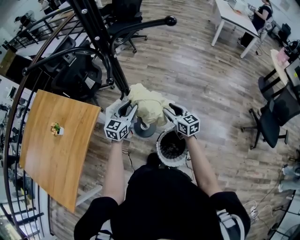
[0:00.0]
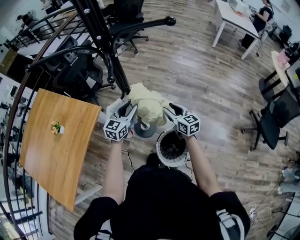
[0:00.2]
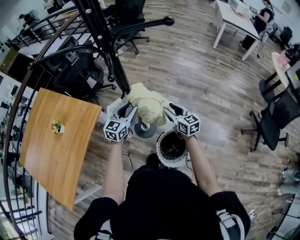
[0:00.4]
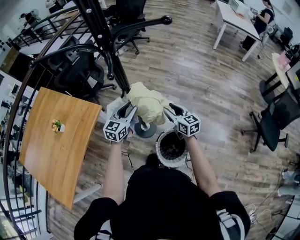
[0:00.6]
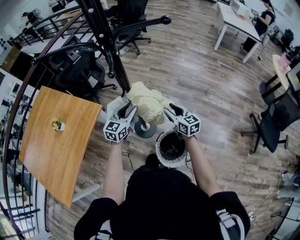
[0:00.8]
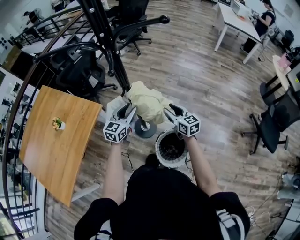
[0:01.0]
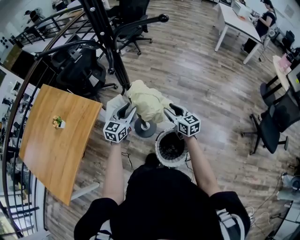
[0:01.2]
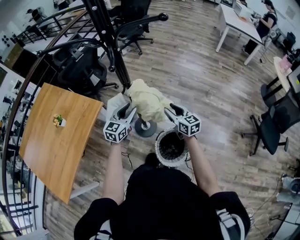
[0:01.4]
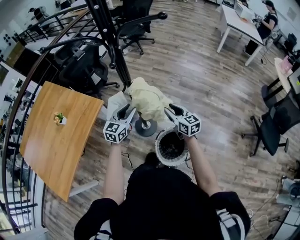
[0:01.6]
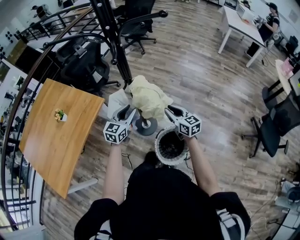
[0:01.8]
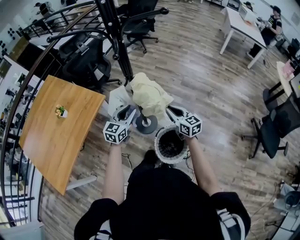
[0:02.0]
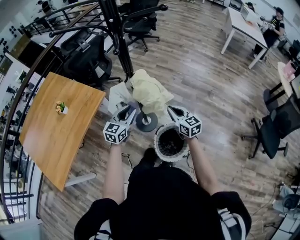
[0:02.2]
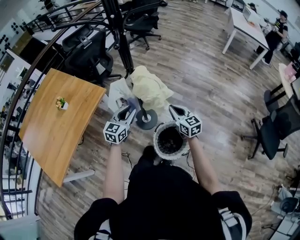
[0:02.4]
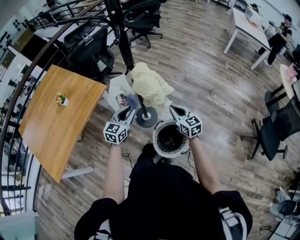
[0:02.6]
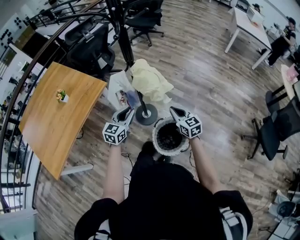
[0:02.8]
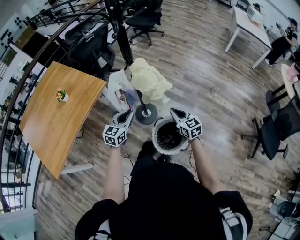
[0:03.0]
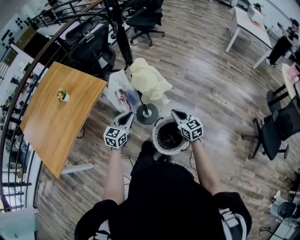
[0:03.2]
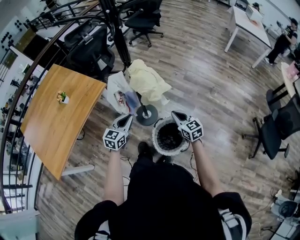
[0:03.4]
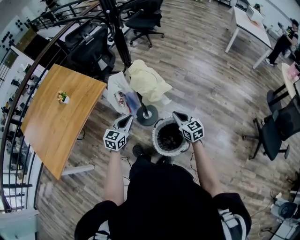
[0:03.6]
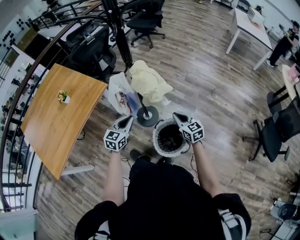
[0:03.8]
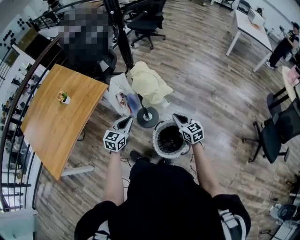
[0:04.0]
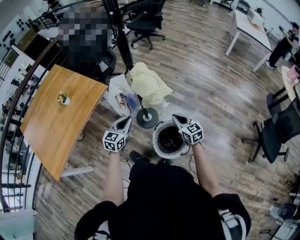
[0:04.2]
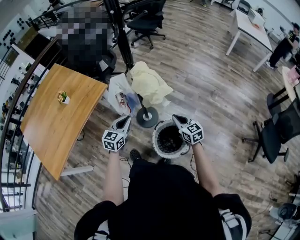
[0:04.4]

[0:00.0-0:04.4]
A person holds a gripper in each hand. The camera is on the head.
0:00.0 to 0:01.4: There are only small adjustments of the grippers.
0:01.4 to 0:03.0: The grippers both shift backward by about 15 cm. The right gripper closes.
0:03.0 to 0:04.4: The grippers move only a little.

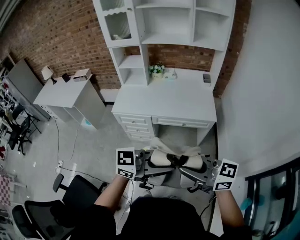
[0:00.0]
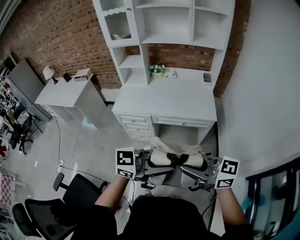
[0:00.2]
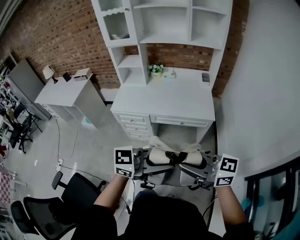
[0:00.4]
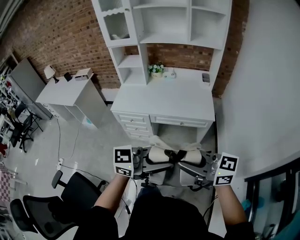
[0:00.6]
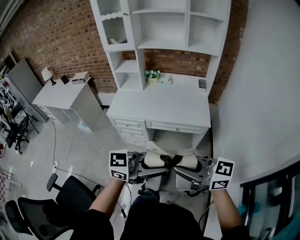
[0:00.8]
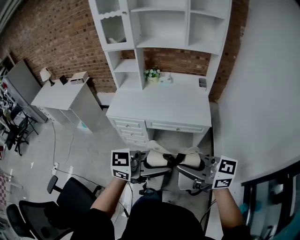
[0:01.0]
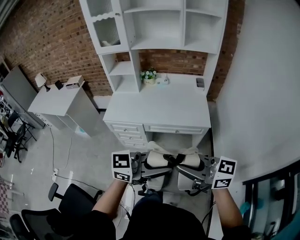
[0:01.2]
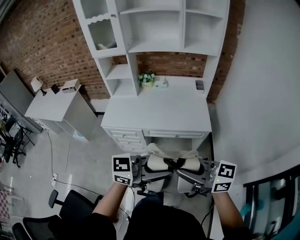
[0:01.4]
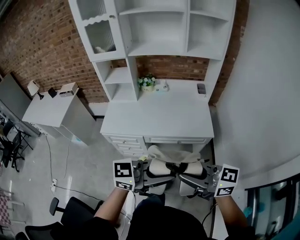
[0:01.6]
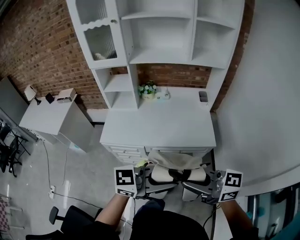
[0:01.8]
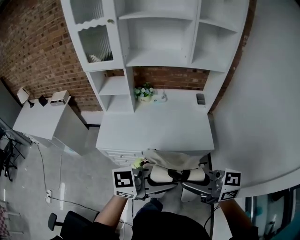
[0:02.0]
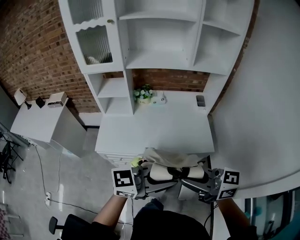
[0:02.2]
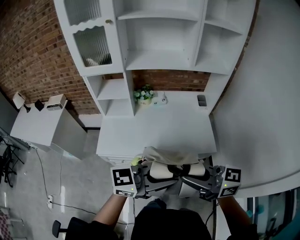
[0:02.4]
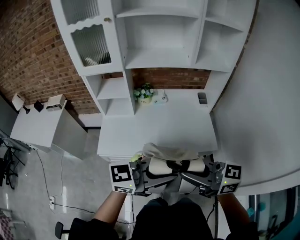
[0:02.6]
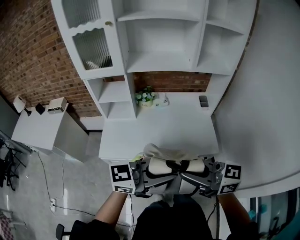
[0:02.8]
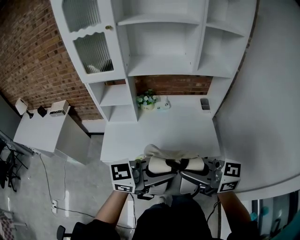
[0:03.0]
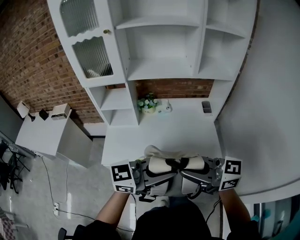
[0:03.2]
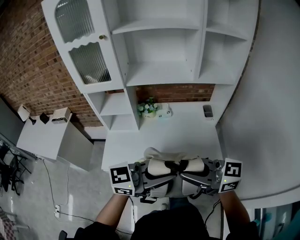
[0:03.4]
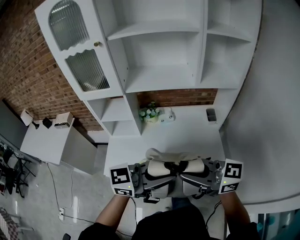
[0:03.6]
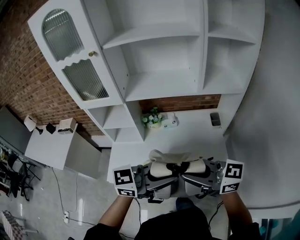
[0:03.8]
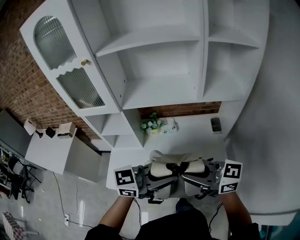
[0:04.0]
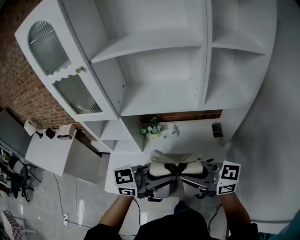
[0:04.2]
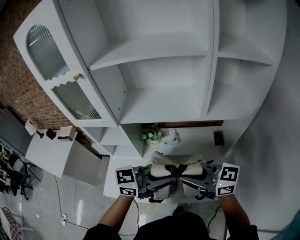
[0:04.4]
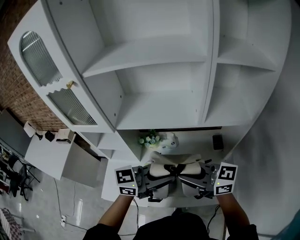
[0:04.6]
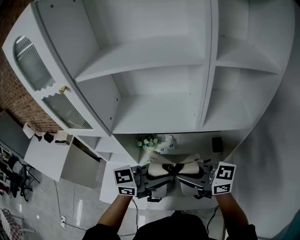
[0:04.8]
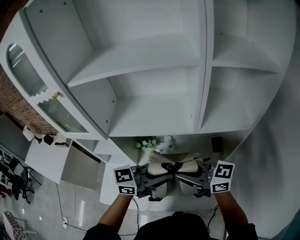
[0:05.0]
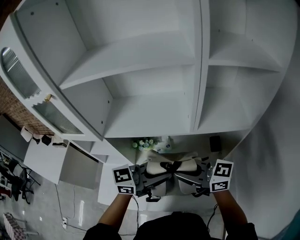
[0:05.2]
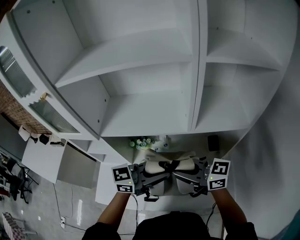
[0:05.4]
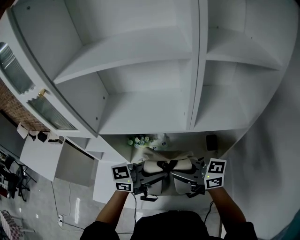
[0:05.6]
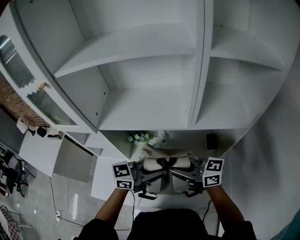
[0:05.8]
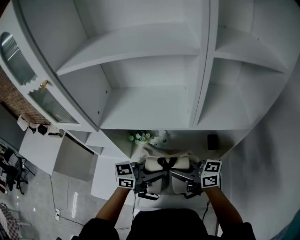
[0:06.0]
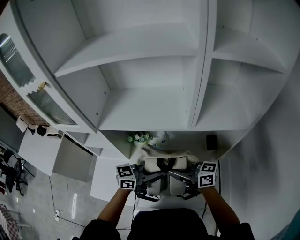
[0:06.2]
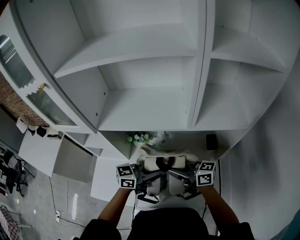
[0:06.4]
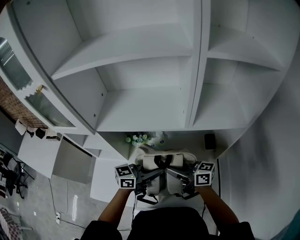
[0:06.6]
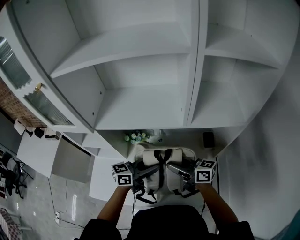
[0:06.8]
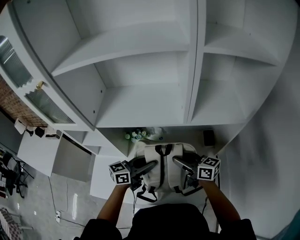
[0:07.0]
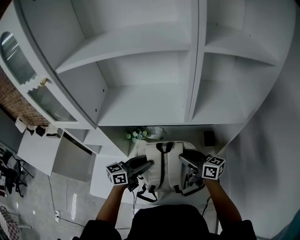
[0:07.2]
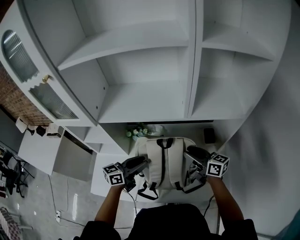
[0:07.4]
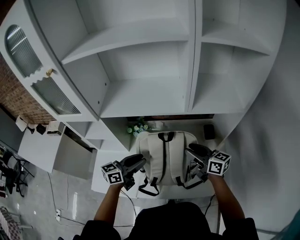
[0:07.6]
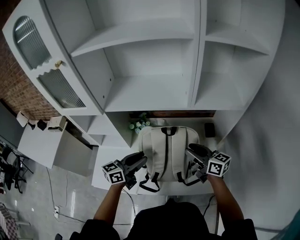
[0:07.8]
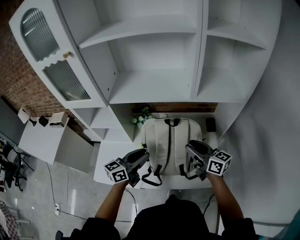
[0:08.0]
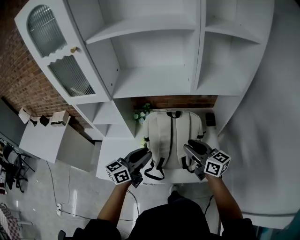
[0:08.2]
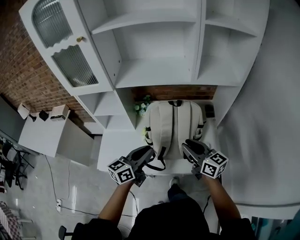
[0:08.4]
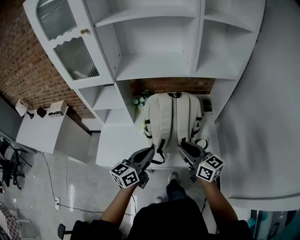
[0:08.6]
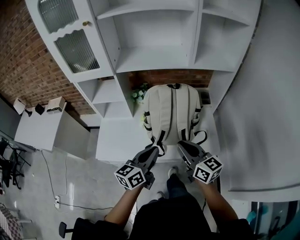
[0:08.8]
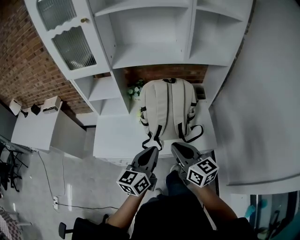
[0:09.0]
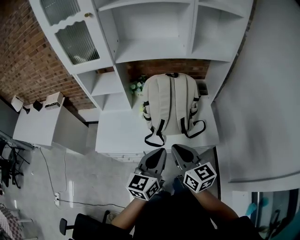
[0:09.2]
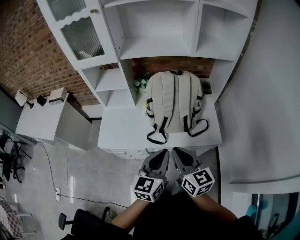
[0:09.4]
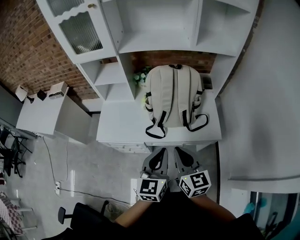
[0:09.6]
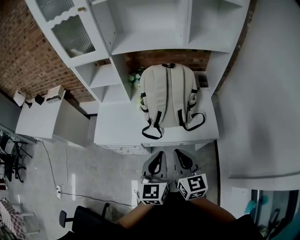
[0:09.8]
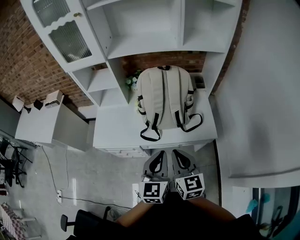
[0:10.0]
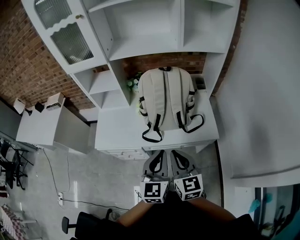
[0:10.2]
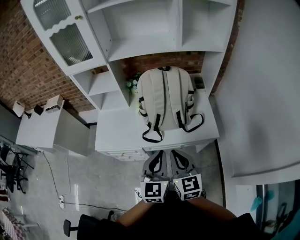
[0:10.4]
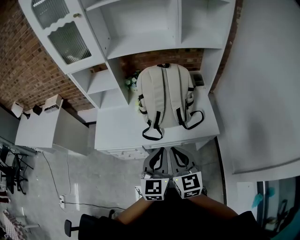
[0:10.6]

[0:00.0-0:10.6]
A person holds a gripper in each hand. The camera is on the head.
0:00.0 to 0:01.6: The right gripper ends up approximately 15 cm from where it was, while the left gripper moves about 15 cm.
0:01.6 to 0:03.0: The right gripper shifts by about 20 cm. The left gripper ends up about 20 cm from where it was.
0:03.0 to 0:04.6: The left gripper shifts by approximately 35 cm, while the right gripper ends up roughly 30 cm from where it was.
0:04.6 to 0:06.0: Both grippers move downward, roughly 10 cm.
0:06.0 to 0:07.6: The left gripper ends up roughly 15 cm from where it was, swivels approximately 20 degrees, and opens its fingers. Meanwhile the right gripper shifts by approximately 10 cm, swivels about 30 degrees, and opens its fingers.
0:07.6 to 0:09.0: The right gripper shifts about 35 cm backward and to the left, and closes. Meanwhile the left gripper heads backward, covering approximately 30 cm, and closes its fingers.
0:09.0 to 0:10.6: Both grippers move backward, about 10 cm. The left gripper swivels about 30 degrees. The right gripper rotates roughly 20 degrees.

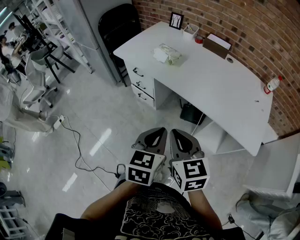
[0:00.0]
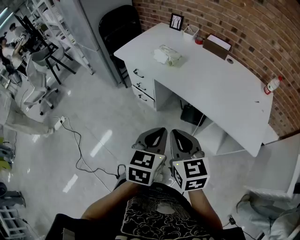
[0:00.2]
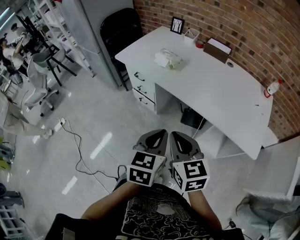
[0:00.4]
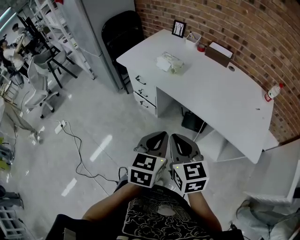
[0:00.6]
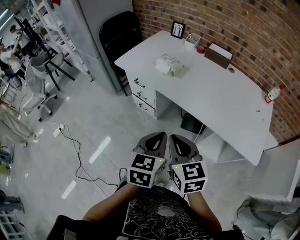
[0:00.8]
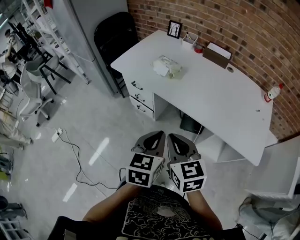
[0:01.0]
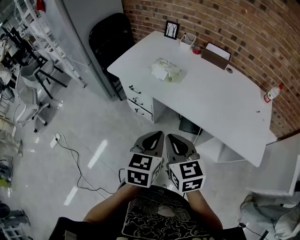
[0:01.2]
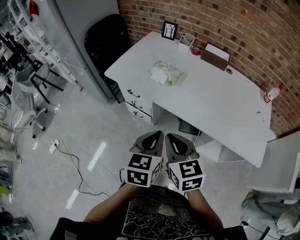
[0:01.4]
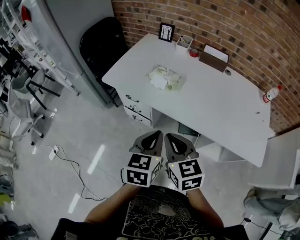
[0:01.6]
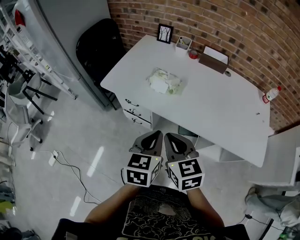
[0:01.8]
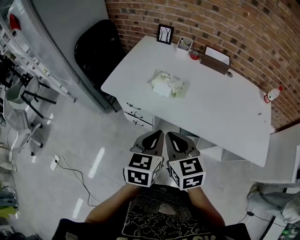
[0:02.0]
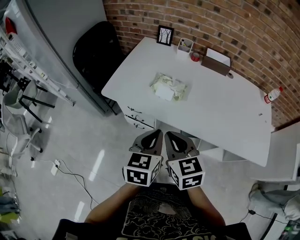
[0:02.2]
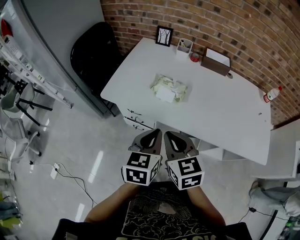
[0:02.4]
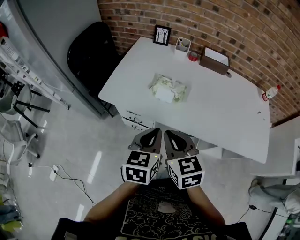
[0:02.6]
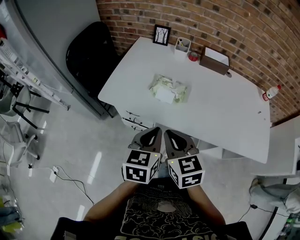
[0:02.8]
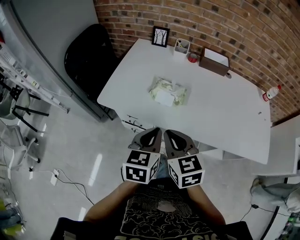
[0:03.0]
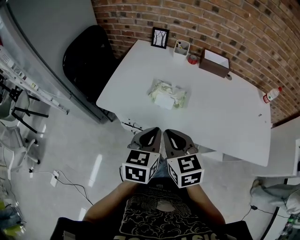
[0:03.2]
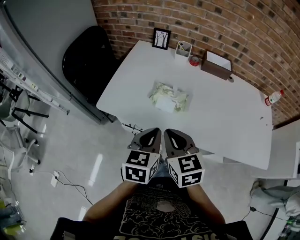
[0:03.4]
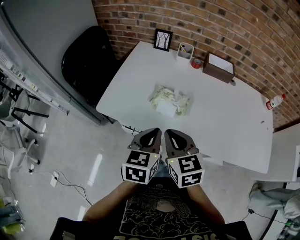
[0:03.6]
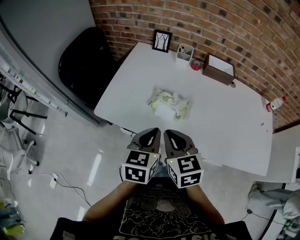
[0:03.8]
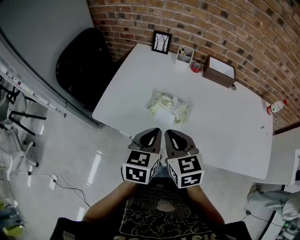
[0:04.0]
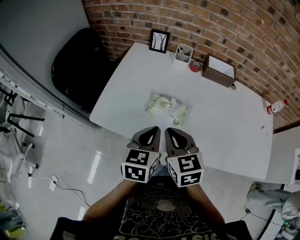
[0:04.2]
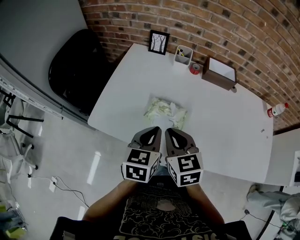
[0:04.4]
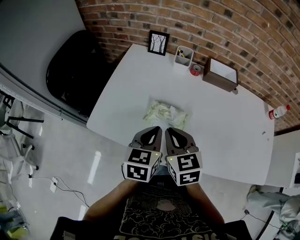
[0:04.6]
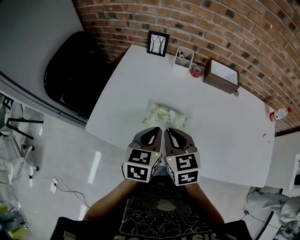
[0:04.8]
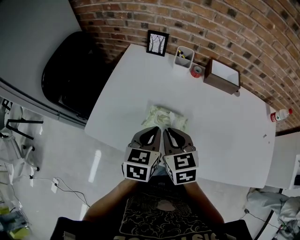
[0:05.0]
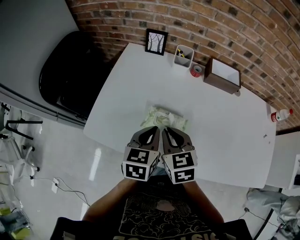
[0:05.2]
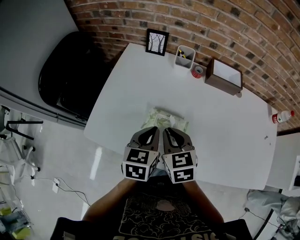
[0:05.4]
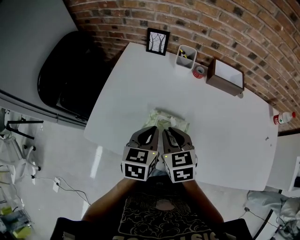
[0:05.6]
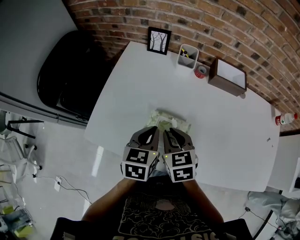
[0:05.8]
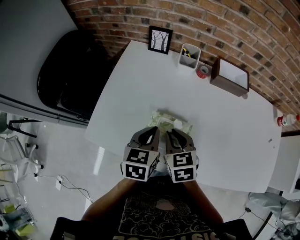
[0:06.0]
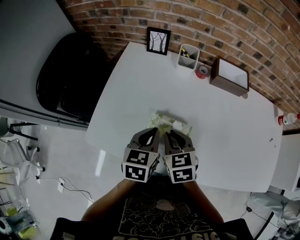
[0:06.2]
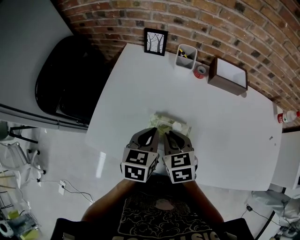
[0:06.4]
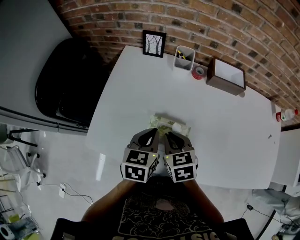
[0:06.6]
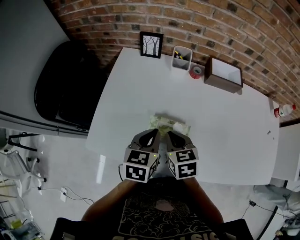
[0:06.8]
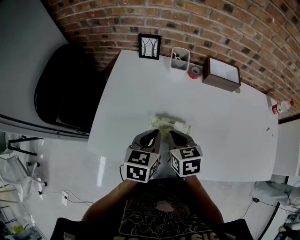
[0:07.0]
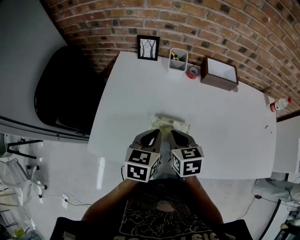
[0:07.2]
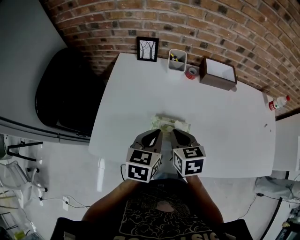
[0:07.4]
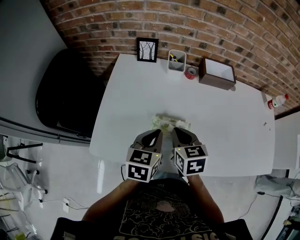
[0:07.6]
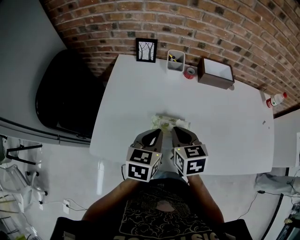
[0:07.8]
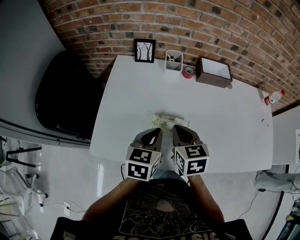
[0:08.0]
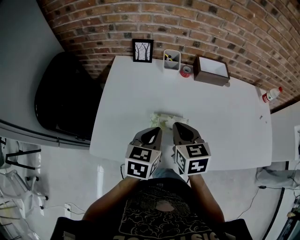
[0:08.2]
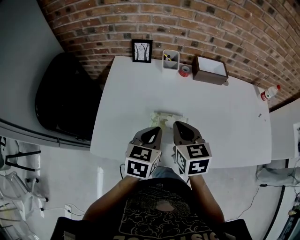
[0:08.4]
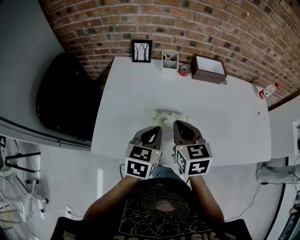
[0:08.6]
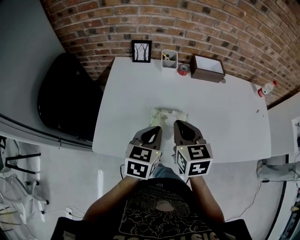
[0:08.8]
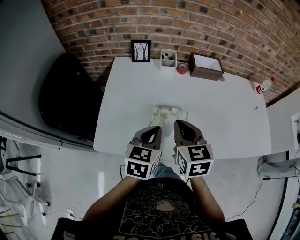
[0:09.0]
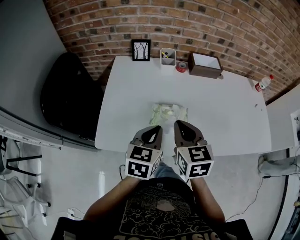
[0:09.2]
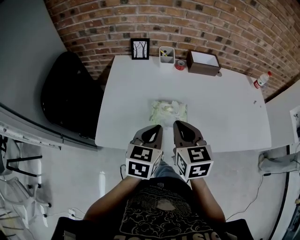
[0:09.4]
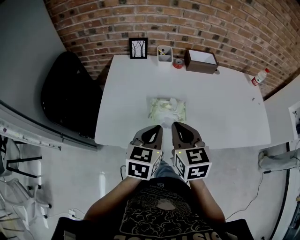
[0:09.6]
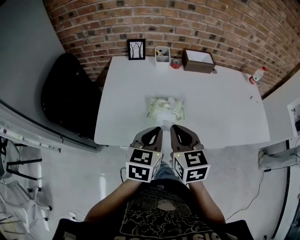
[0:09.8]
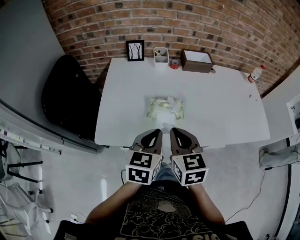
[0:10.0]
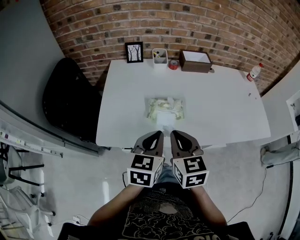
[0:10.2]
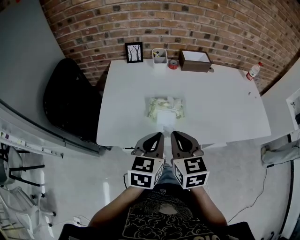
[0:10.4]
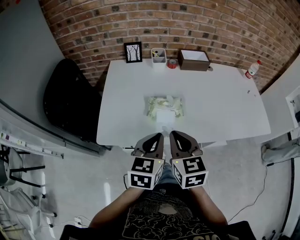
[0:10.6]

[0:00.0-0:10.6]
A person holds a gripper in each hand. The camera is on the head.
0:00.0 to 0:01.6: Both grippers travel together forward and to the left, some 20 cm.
0:01.6 to 0:03.0: The grippers both shift forward and to the left by about 15 cm.
0:03.0 to 0:04.6: The two grippers go roughly 15 cm forward.
0:04.6 to 0:06.0: The left gripper goes about 5 cm forward. The right gripper shifts about 10 cm downward and forward.
0:06.0 to 0:07.6: The grippers make only small movements.
0:07.6 to 0:09.0: The right gripper is displaced upward and backward by some 10 cm. The left gripper heads backward, covering approximately 5 cm.
0:09.0 to 0:10.6: The two grippers go some 10 cm backward.
